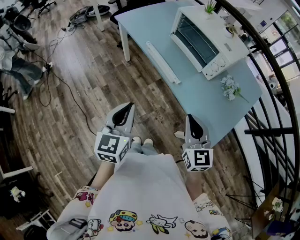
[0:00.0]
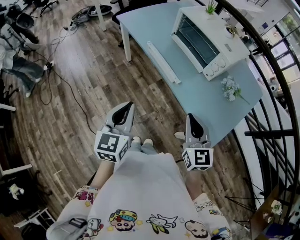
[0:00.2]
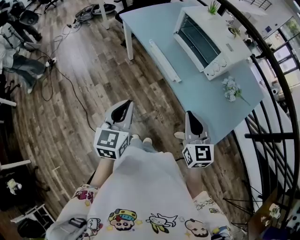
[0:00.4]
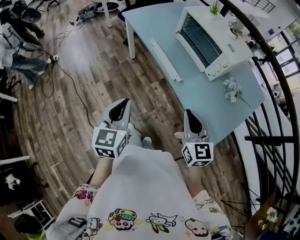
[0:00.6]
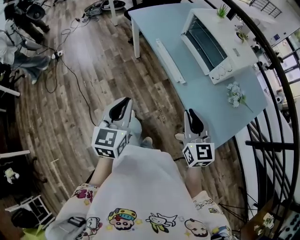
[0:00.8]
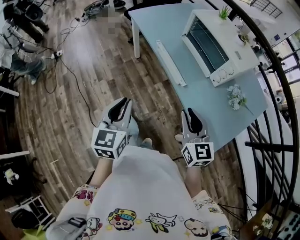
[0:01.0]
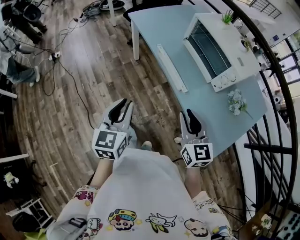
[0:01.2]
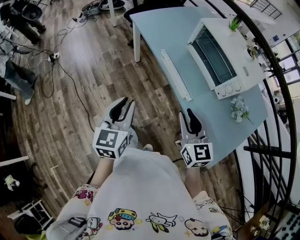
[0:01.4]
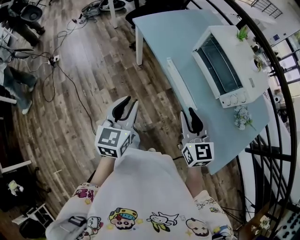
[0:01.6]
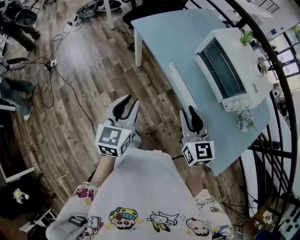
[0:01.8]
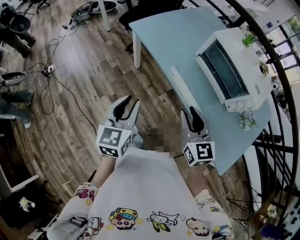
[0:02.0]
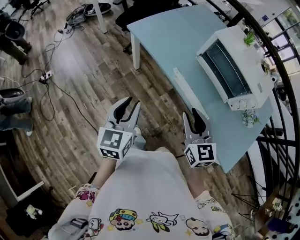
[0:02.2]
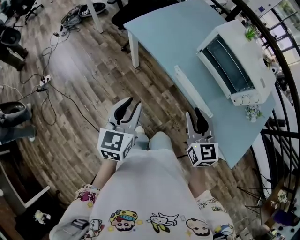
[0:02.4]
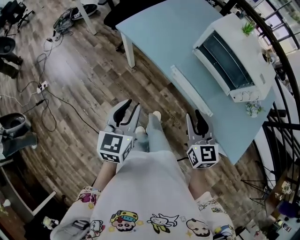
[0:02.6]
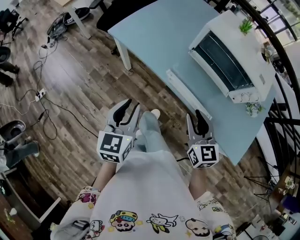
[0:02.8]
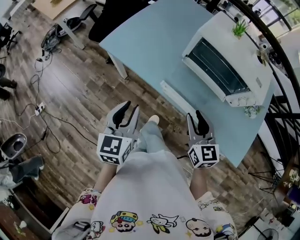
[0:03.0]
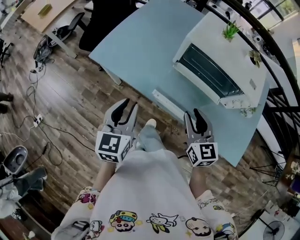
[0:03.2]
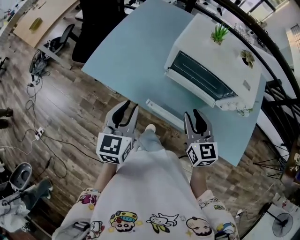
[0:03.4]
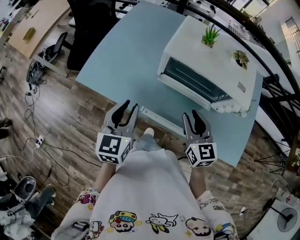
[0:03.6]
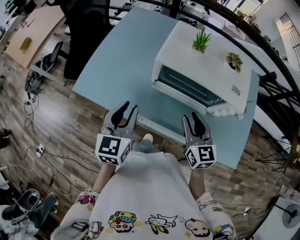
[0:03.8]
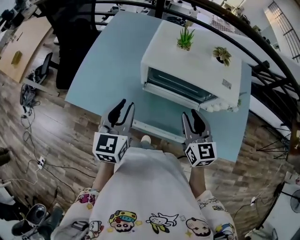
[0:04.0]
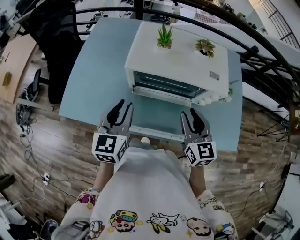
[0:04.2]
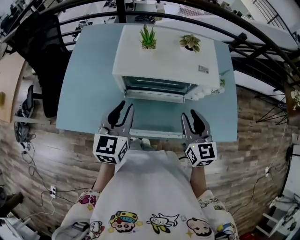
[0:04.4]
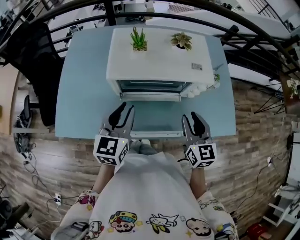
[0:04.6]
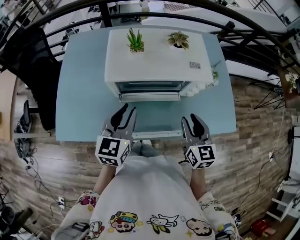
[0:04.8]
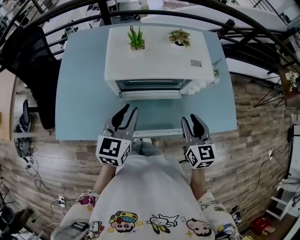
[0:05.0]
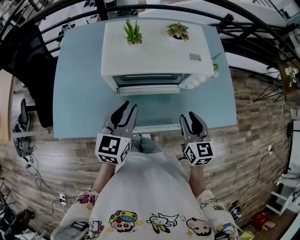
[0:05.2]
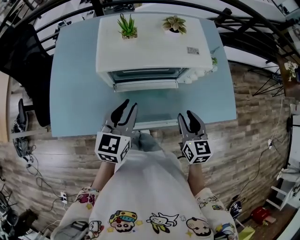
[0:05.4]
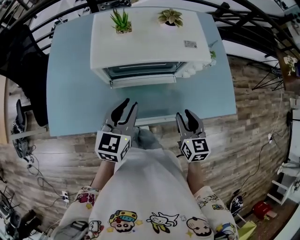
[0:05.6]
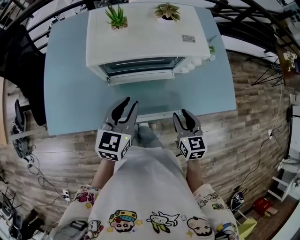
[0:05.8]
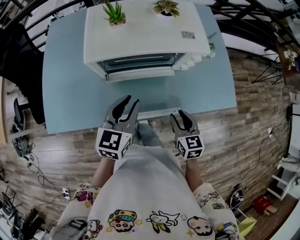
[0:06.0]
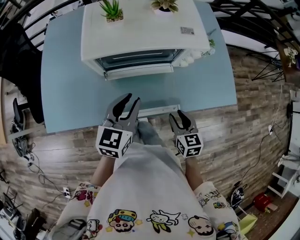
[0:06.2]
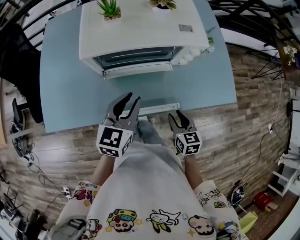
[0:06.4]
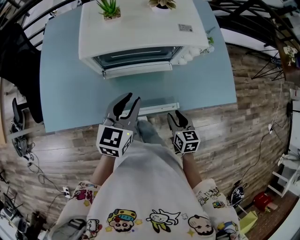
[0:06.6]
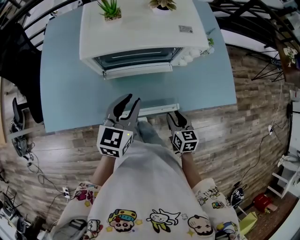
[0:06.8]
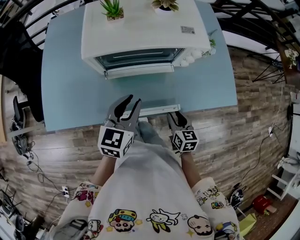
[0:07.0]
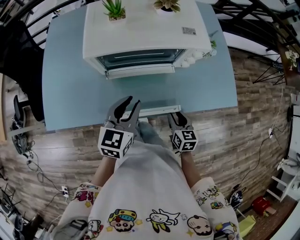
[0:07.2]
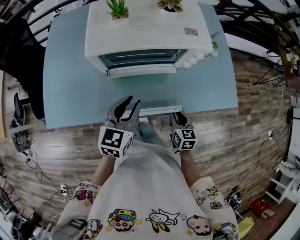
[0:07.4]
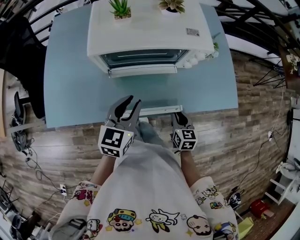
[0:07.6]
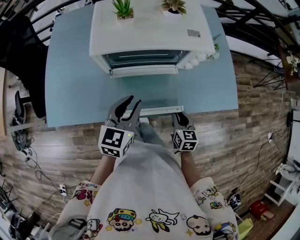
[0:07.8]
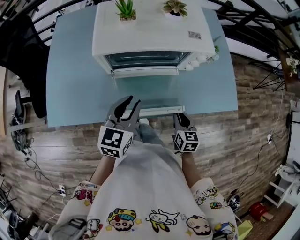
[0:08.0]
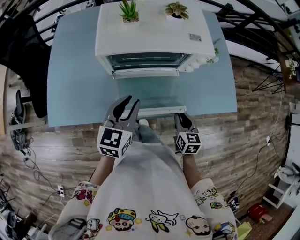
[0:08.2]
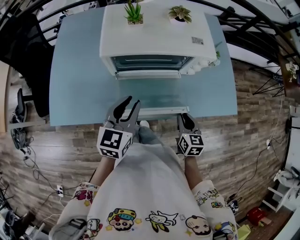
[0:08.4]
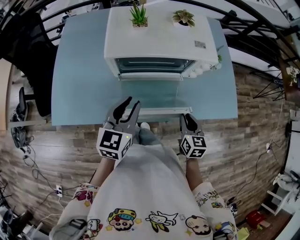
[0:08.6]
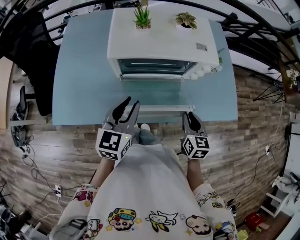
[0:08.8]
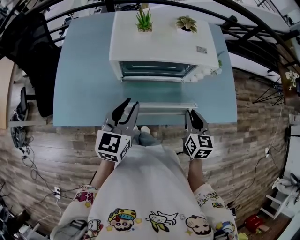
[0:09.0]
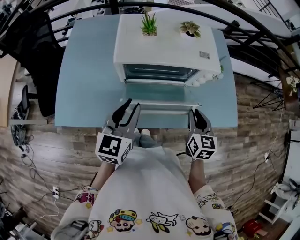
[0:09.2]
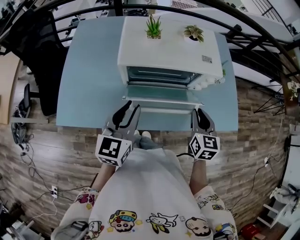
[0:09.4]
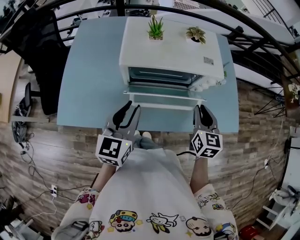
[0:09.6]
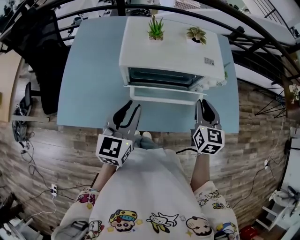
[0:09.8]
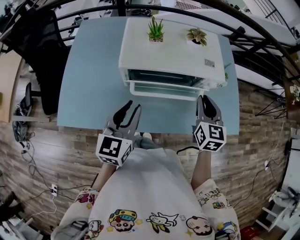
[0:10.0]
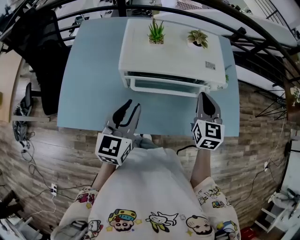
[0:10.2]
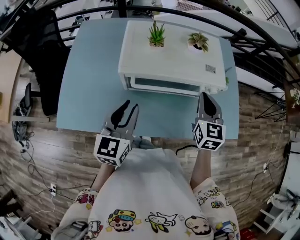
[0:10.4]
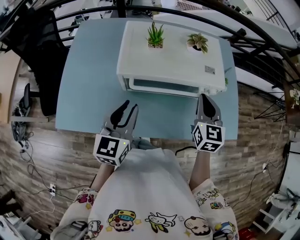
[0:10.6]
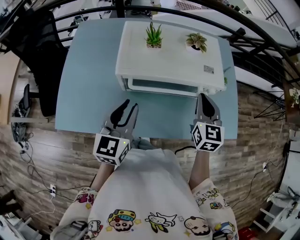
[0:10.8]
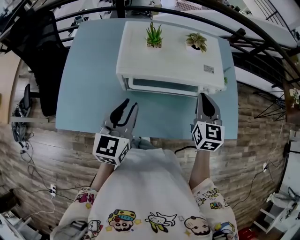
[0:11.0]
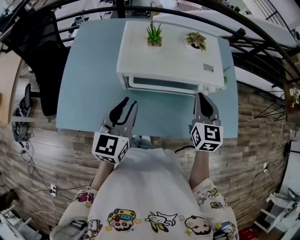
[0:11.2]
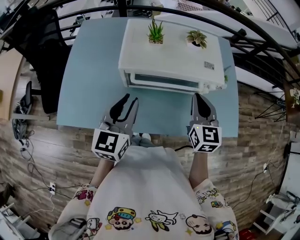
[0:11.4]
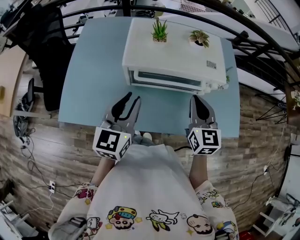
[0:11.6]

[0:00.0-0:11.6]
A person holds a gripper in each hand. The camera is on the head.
0.0 to 1.4 s: The two grippers go about 10 cm forward and to the left. The right gripper opens.
1.4 to 2.8 s: The grippers both shift forward and to the left by roughly 20 cm. The right gripper turns by about 20 degrees. The left gripper swivels about 20 degrees.
2.8 to 4.4 s: The left gripper changes place by some 30 cm, and changes its angle by about 40 degrees. The right gripper changes place by approximately 20 cm, and rotates roughly 40 degrees.
4.4 to 5.8 s: The left gripper is displaced to the right and downward by some 10 cm. Meanwhile the right gripper heads downward and backward, covering approximately 15 cm.
5.8 to 7.2 s: The right gripper is displaced downward by about 10 cm.
7.2 to 8.8 s: The left gripper goes approximately 5 cm to the left; the right gripper heads upward, covering roughly 10 cm.
8.8 to 10.2 s: The right gripper goes about 20 cm forward and upward.
10.2 to 11.6 s: The right gripper shifts by approximately 5 cm.

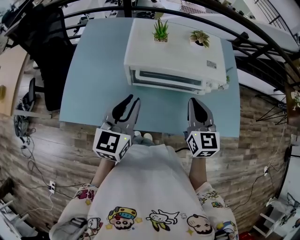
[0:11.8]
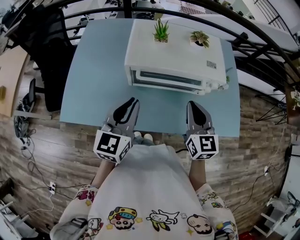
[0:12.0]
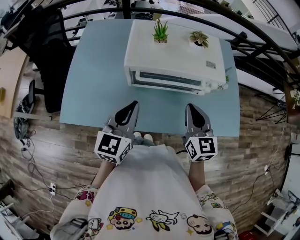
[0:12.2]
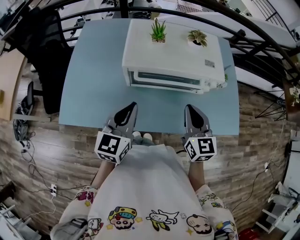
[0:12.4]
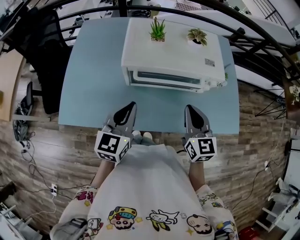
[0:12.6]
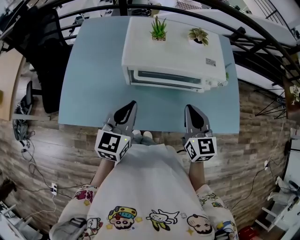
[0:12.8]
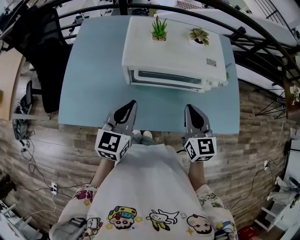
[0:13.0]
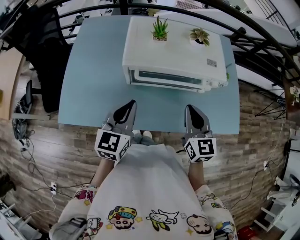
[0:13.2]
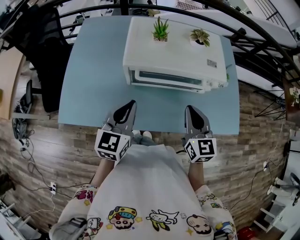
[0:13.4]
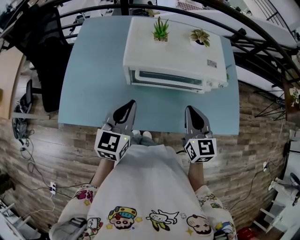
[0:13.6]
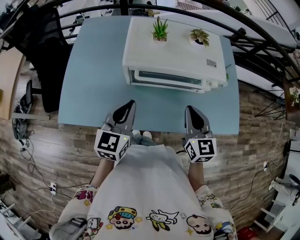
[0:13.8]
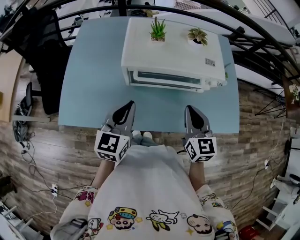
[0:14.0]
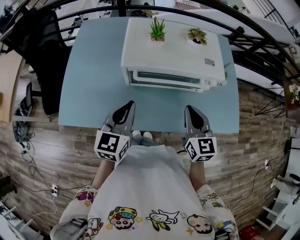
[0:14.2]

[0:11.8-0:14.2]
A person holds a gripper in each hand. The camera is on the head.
11.8 to 13.0 s: The grippers make only small movements.
13.0 to 14.2 s: Both grippers stay about where they are.

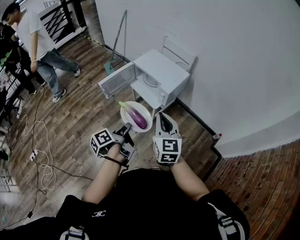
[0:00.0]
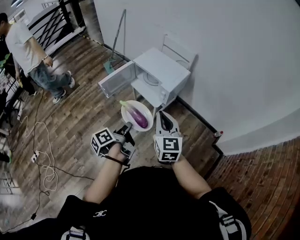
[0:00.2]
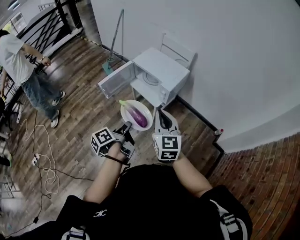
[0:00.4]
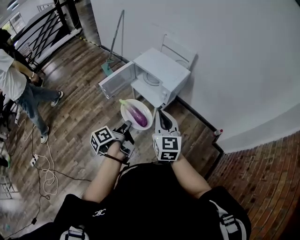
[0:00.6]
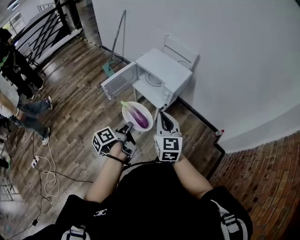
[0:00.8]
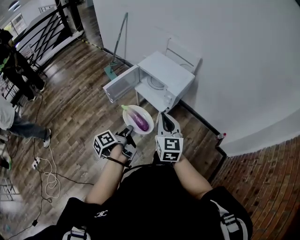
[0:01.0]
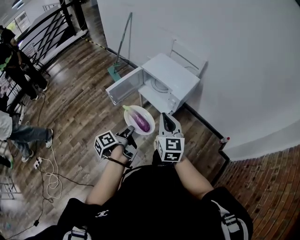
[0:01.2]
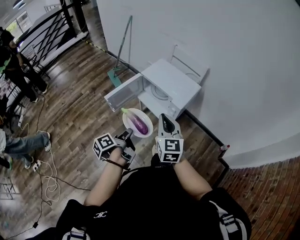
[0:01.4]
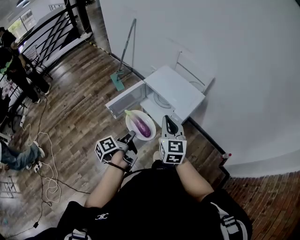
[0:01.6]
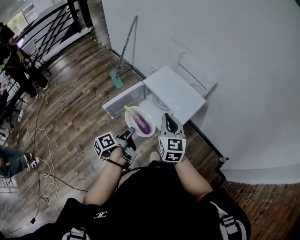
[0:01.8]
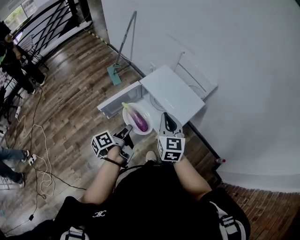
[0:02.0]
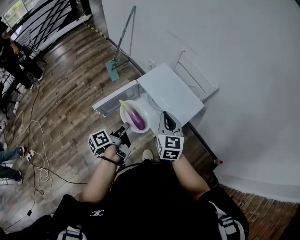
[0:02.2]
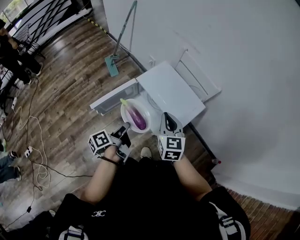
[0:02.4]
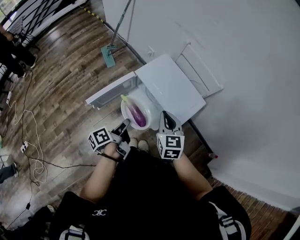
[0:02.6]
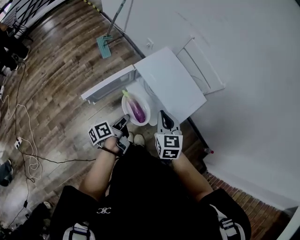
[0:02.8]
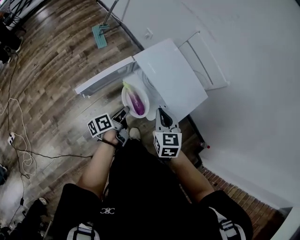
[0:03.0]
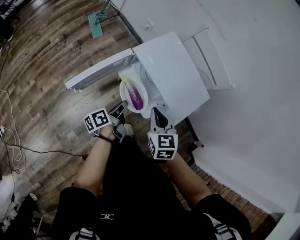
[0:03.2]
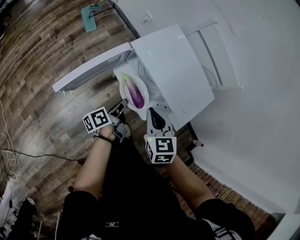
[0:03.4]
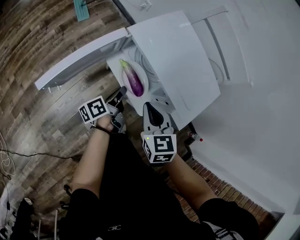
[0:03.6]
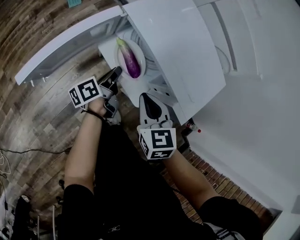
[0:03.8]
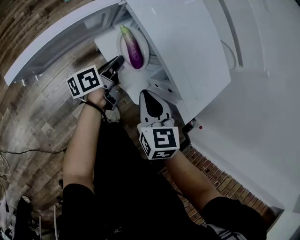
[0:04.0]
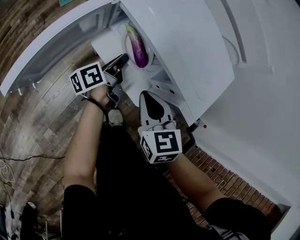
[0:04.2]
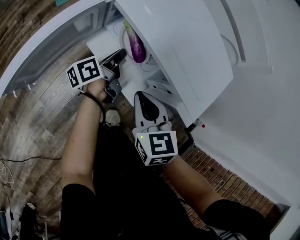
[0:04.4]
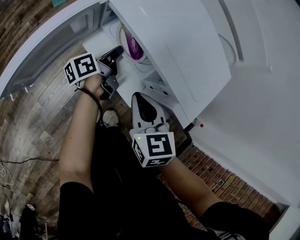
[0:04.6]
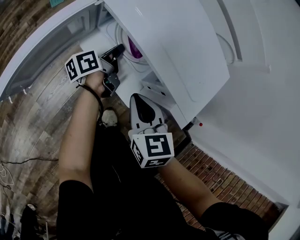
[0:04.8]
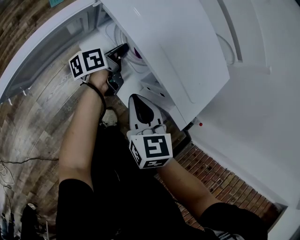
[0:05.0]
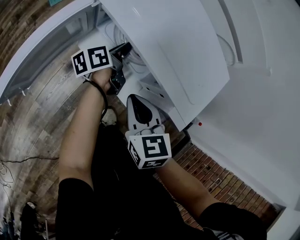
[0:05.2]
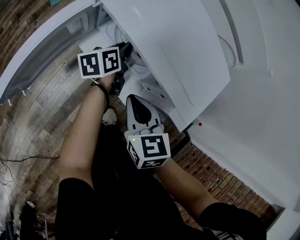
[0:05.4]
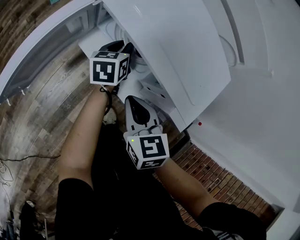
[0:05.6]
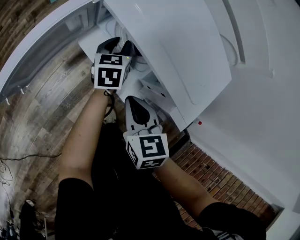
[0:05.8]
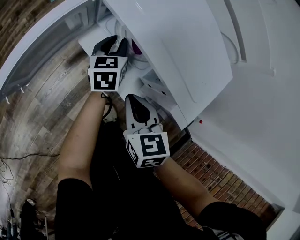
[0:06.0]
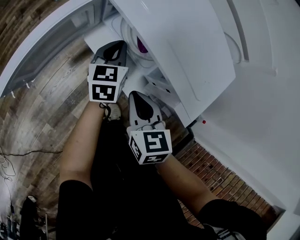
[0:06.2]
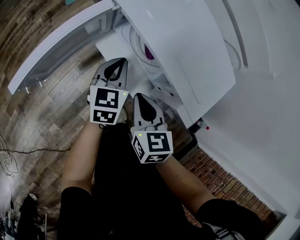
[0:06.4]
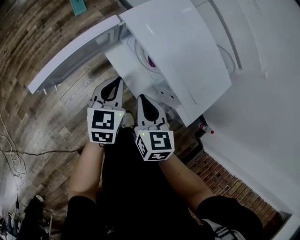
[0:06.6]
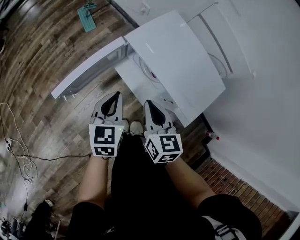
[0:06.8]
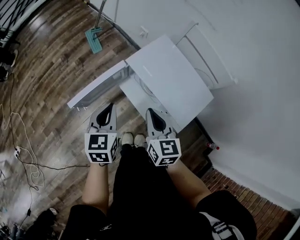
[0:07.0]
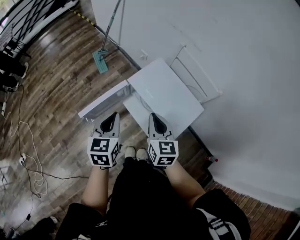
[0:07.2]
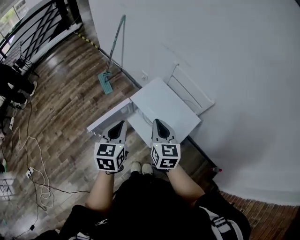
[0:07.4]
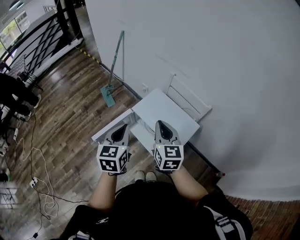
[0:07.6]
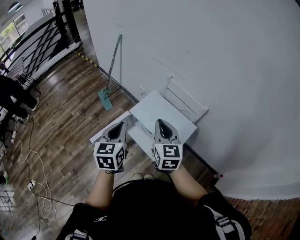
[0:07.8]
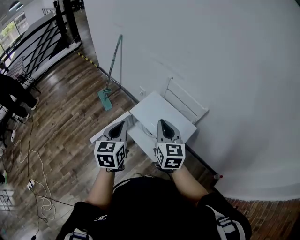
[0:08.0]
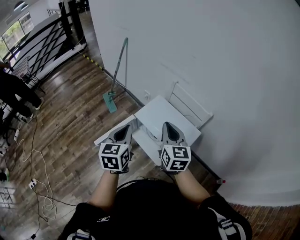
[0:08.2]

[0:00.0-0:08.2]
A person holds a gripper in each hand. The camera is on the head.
0.0 to 1.6 s: Both grippers travel together forward and to the left, some 20 cm.
1.6 to 3.2 s: The left gripper heads forward and downward, covering roughly 30 cm, while the right gripper goes some 25 cm downward and forward, and swivels about 30 degrees.
3.2 to 5.0 s: The right gripper shifts about 15 cm downward. The left gripper moves forward, downward and to the right, some 25 cm.
5.0 to 6.6 s: The right gripper changes place by some 5 cm. Meanwhile the left gripper travels upward, backward and to the left by some 20 cm, rolls clockwise, seen from behind, by roughly 60 degrees, and opens and closes again.
6.6 to 8.2 s: The grippers both shift upward by roughly 35 cm. The right gripper changes its angle by roughly 30 degrees.

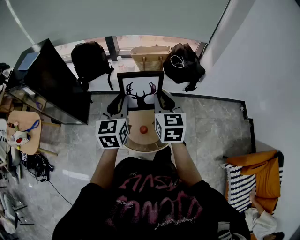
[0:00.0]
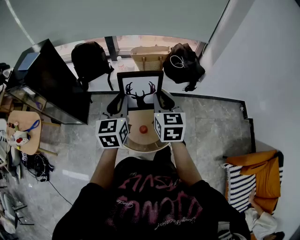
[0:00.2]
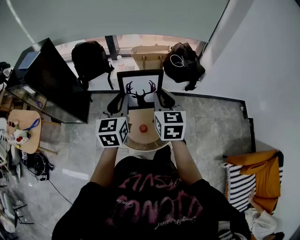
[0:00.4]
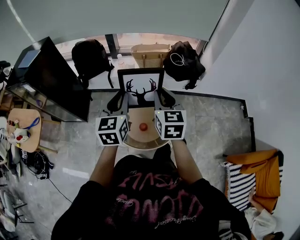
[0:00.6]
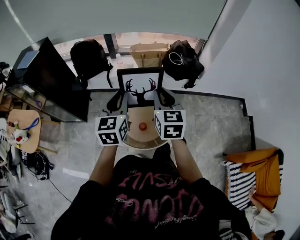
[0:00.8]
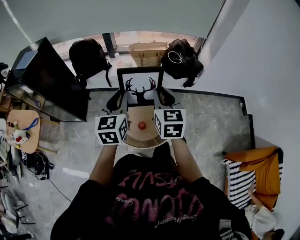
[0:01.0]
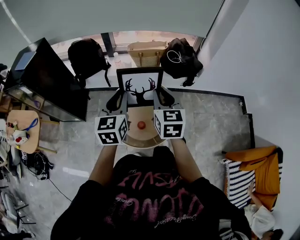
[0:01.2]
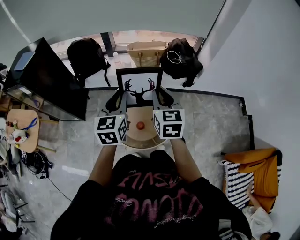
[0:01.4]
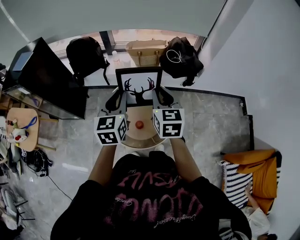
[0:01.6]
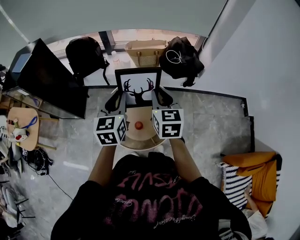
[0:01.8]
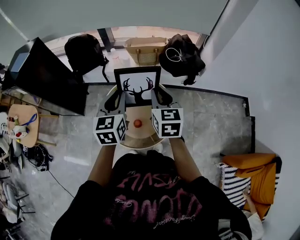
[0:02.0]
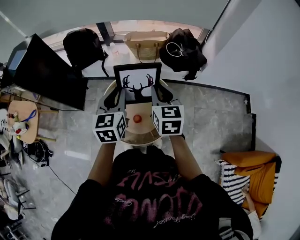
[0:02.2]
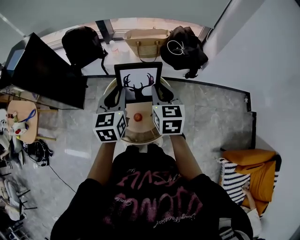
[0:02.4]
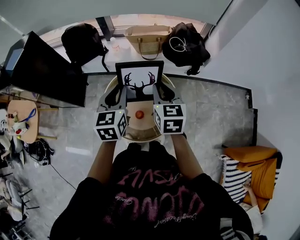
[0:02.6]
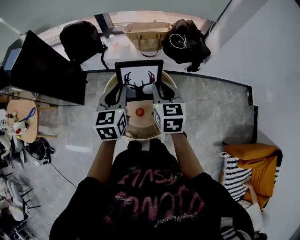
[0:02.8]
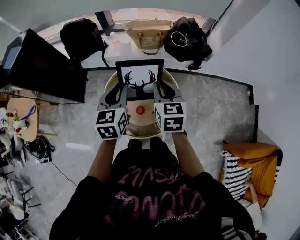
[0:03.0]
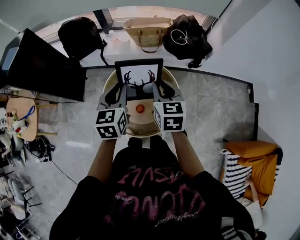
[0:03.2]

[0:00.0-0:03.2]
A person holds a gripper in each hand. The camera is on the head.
0.0 to 1.6 s: The grippers move only a little.
1.6 to 3.2 s: The two grippers go about 10 cm downward.
